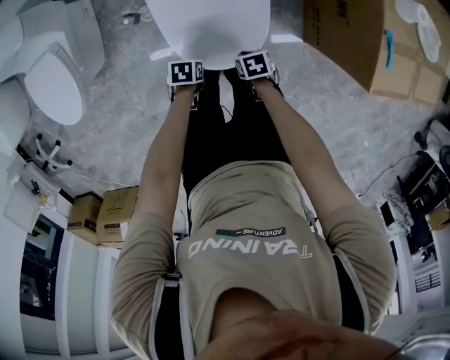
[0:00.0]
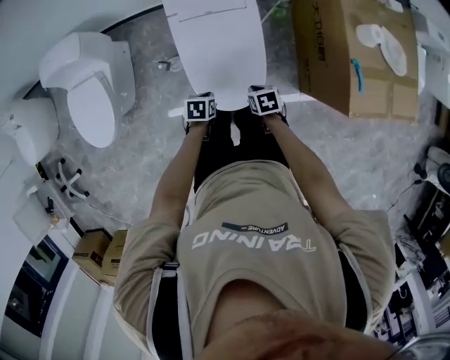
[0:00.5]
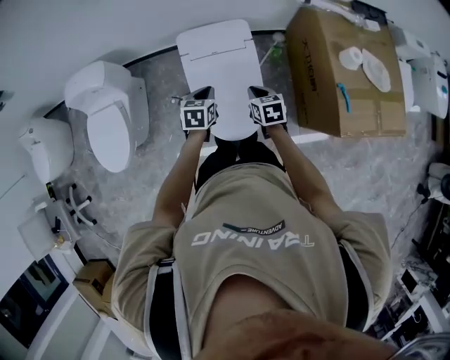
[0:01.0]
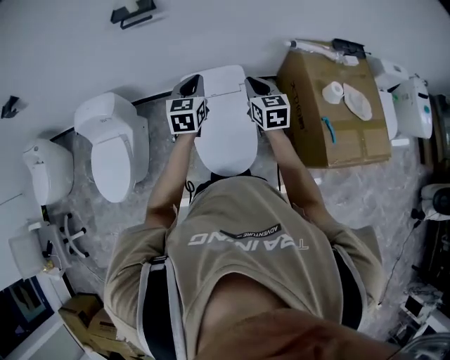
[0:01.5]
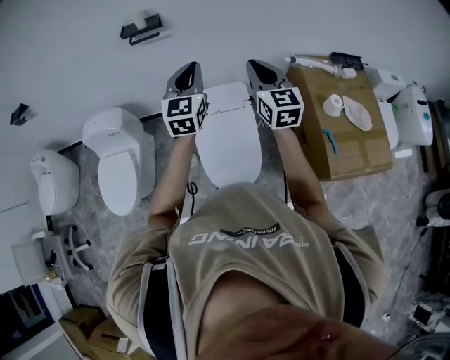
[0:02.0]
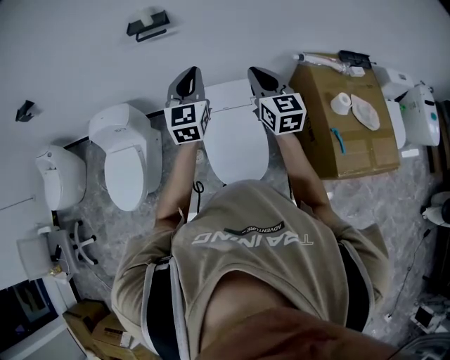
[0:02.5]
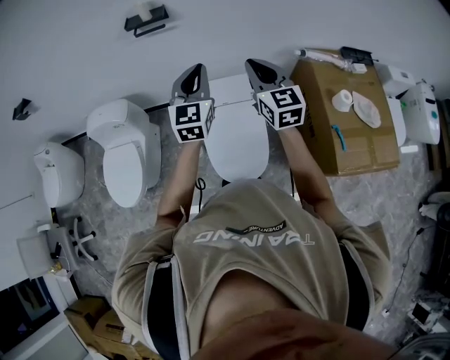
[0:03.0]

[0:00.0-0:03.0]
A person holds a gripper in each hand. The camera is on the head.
0:00.0 to 0:01.5: Both grippers travel together upward, some 50 cm. The left gripper points its fingers approximately 50 degrees further upward; the right gripper points its fingers some 50 degrees further upward.
0:01.5 to 0:03.0: Both grippers travel together upward, about 15 cm.

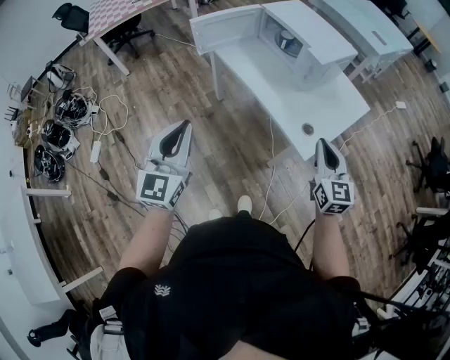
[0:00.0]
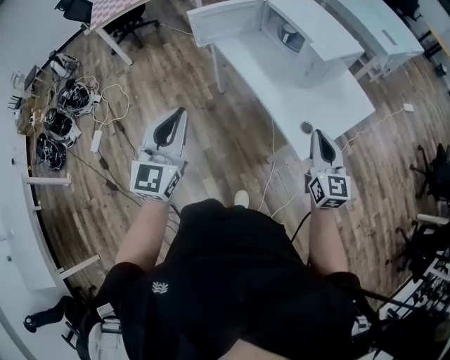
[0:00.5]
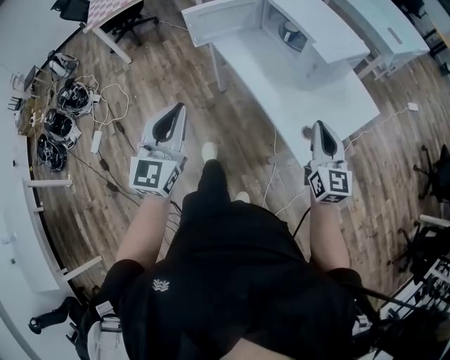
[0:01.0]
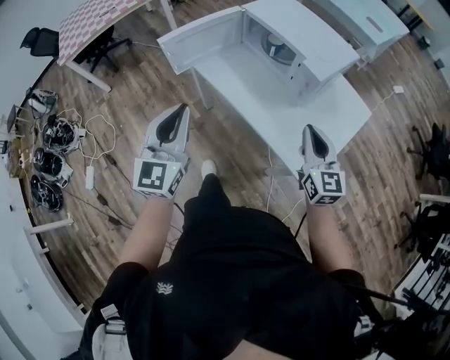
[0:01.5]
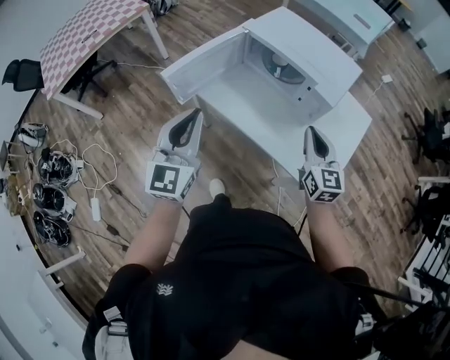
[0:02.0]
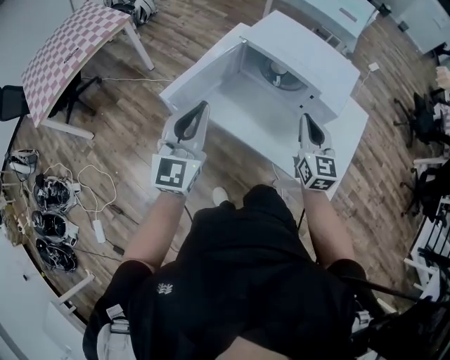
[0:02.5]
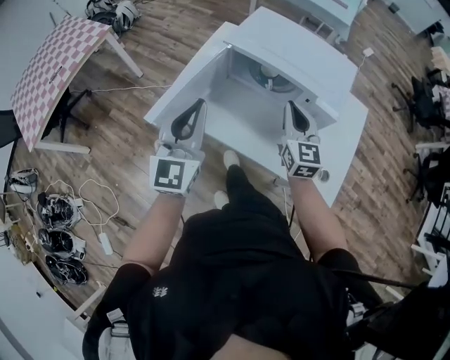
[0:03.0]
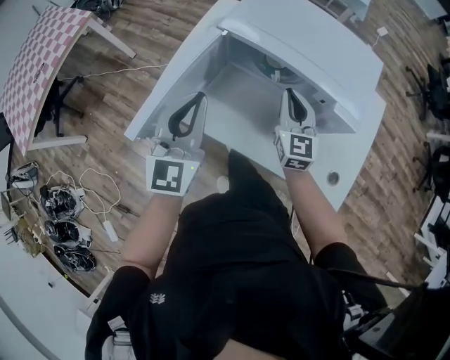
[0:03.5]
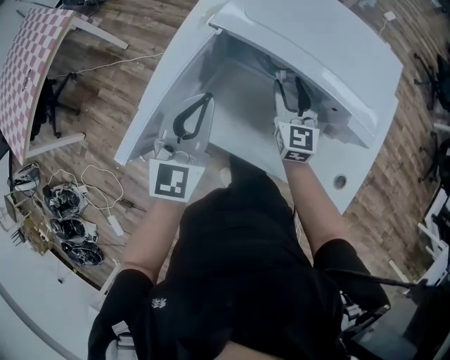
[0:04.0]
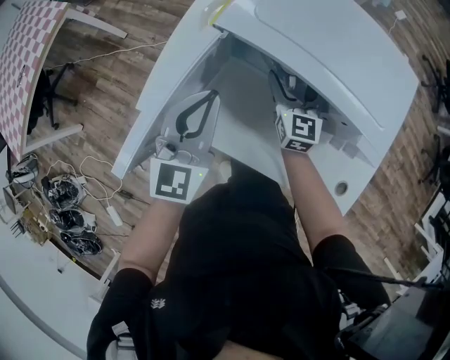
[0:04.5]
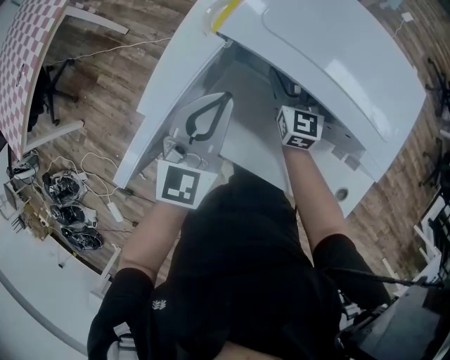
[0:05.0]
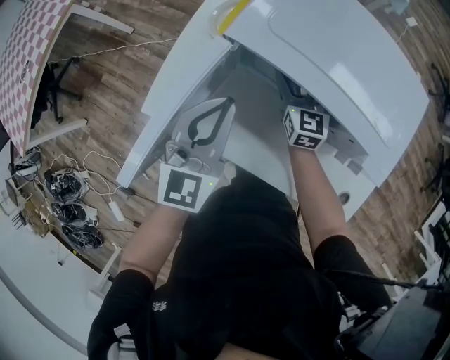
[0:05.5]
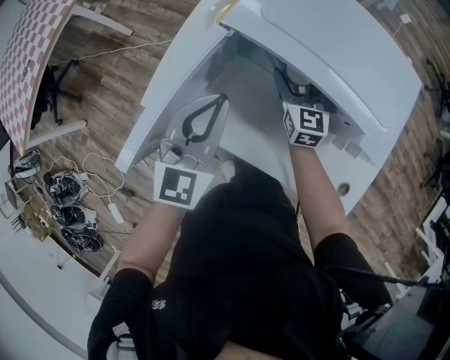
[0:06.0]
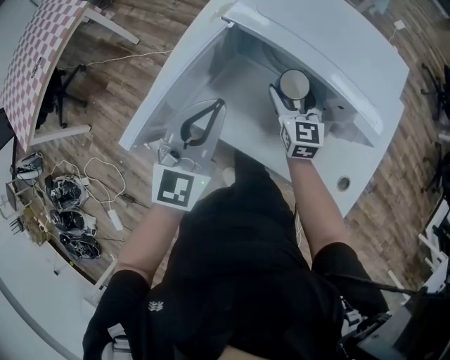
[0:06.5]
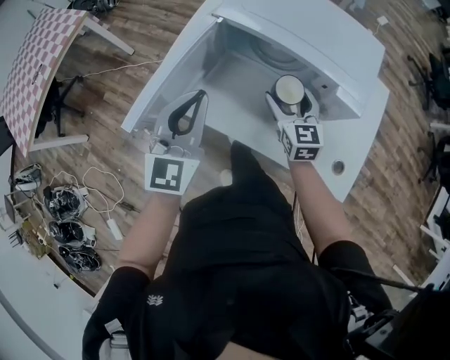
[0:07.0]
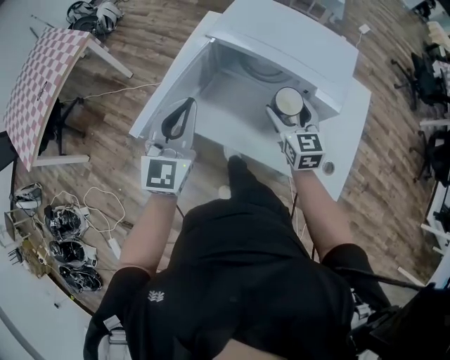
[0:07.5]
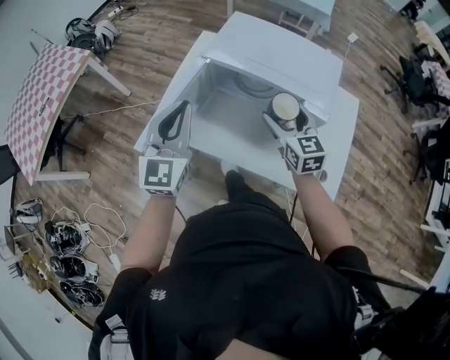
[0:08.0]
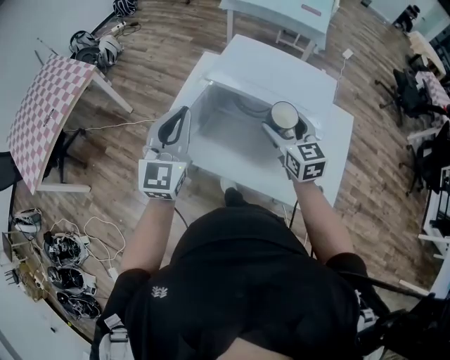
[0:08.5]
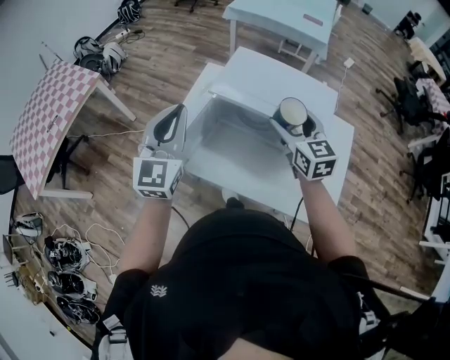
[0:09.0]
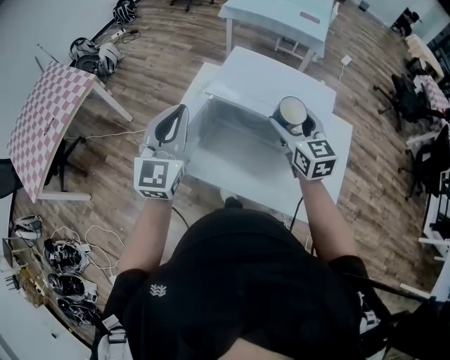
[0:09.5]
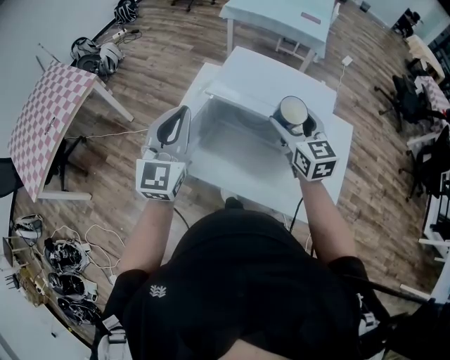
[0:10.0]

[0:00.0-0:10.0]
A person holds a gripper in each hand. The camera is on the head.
0:00.0 to 0:02.0: The grippers both shift forward by approximately 35 cm.
0:02.0 to 0:04.0: Both grippers move forward and downward, about 35 cm. The right gripper opens its fingers.
0:04.0 to 0:06.0: The right gripper heads forward, covering some 5 cm, and opens up.
0:06.0 to 0:08.0: The right gripper moves backward and upward, approximately 25 cm; the left gripper goes some 20 cm upward and backward.
0:08.0 to 0:10.0: Both grippers travel together upward and forward, about 10 cm.

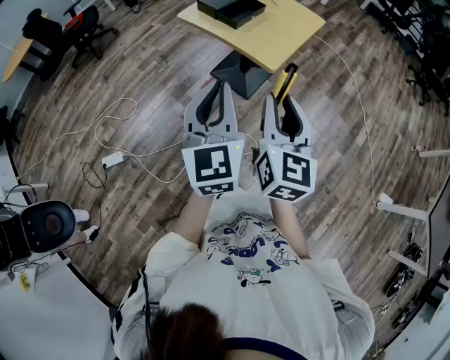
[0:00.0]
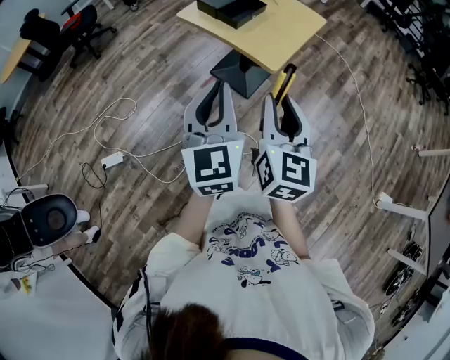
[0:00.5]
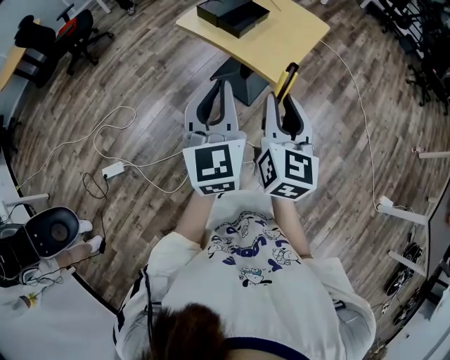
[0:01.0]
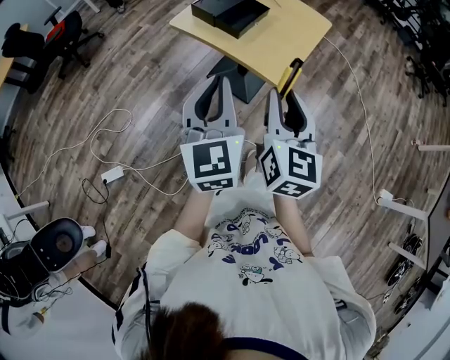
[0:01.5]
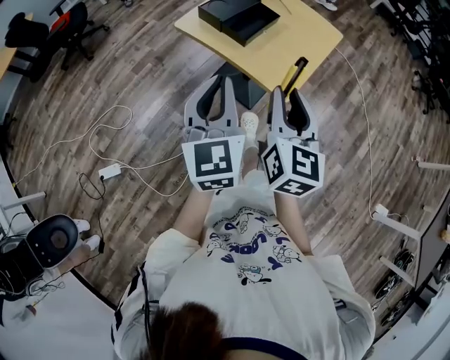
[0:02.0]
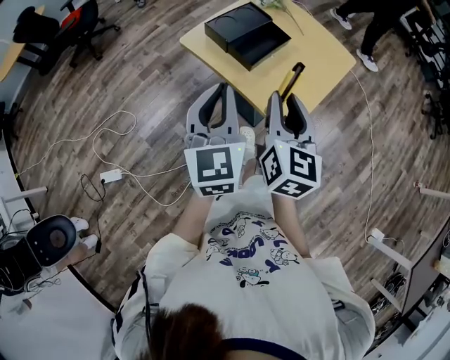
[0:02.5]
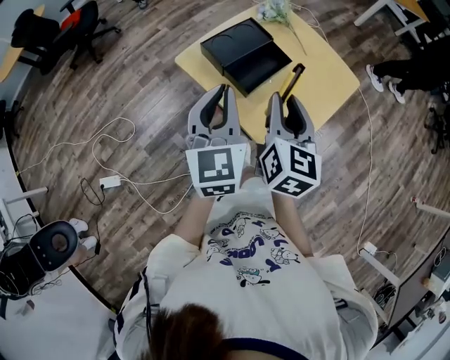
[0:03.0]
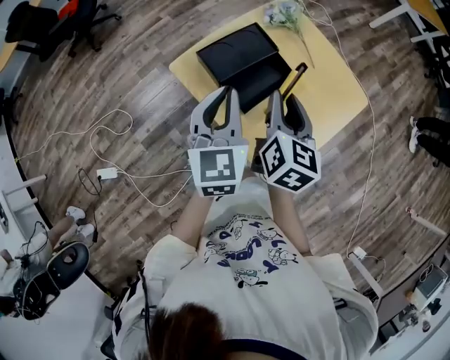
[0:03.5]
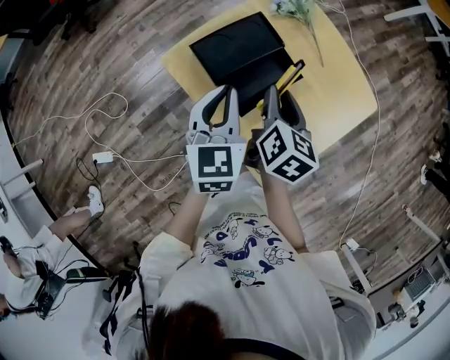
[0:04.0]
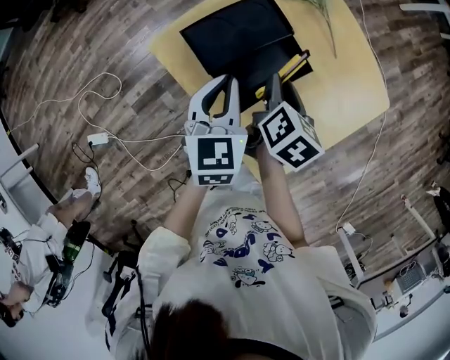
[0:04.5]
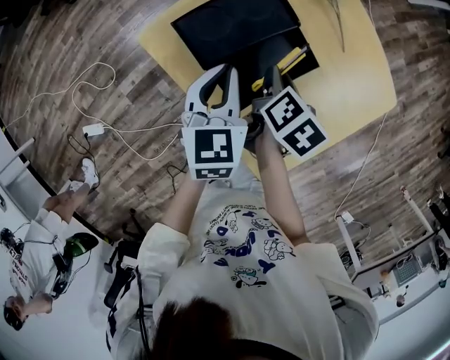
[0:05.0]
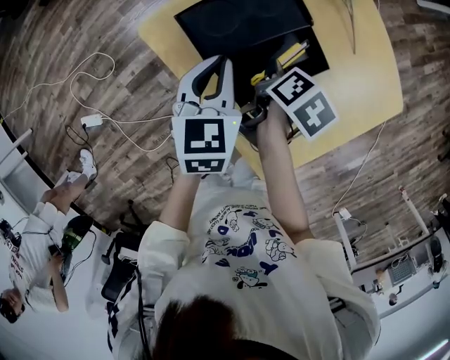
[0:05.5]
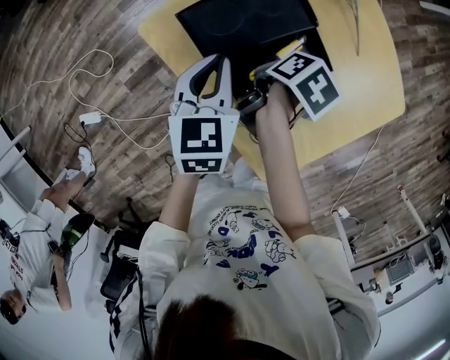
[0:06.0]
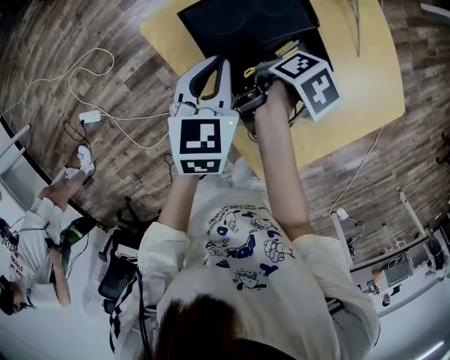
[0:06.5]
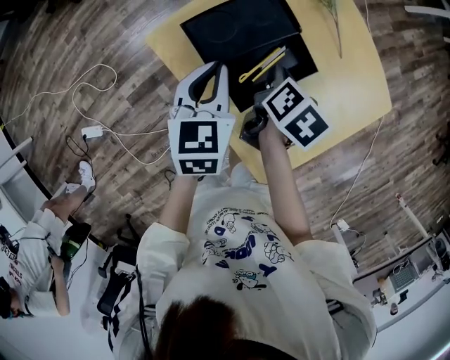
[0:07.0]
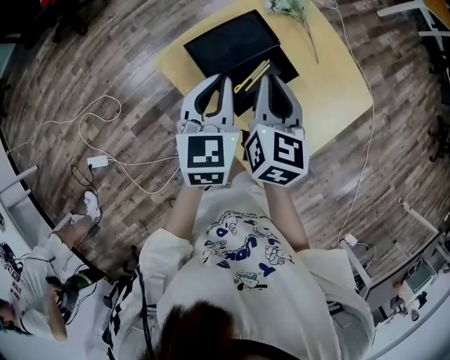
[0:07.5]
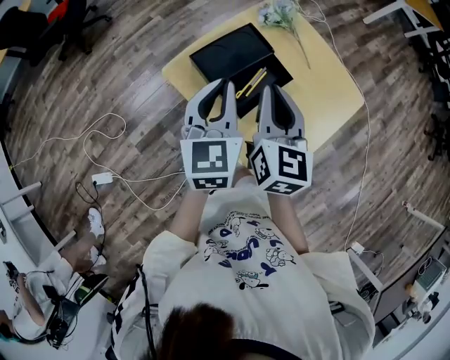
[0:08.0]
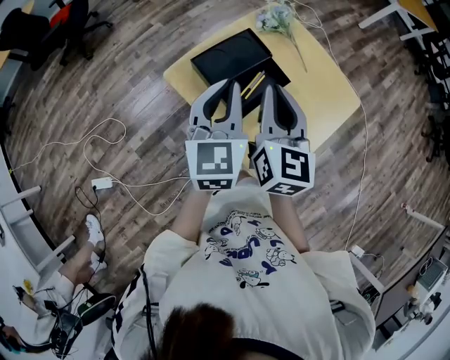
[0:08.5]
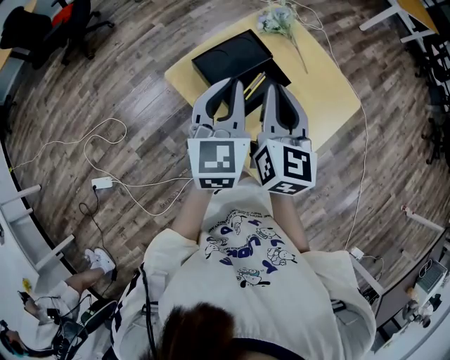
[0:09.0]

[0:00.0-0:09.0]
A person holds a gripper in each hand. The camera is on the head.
0:00.0 to 0:02.0: Both grippers travel together forward, roughly 20 cm.
0:02.0 to 0:04.5: The grippers both shift forward and downward by about 40 cm. The right gripper tilts its fingers about 30 degrees downward. Meanwhile the left gripper turns by approximately 30 degrees.
0:04.5 to 0:07.0: The right gripper goes downward and returns, about 10 cm each way.
0:07.0 to 0:09.0: Both grippers travel together upward, approximately 20 cm. The left gripper turns by roughly 20 degrees. Meanwhile the right gripper tilts its fingers approximately 40 degrees upward.

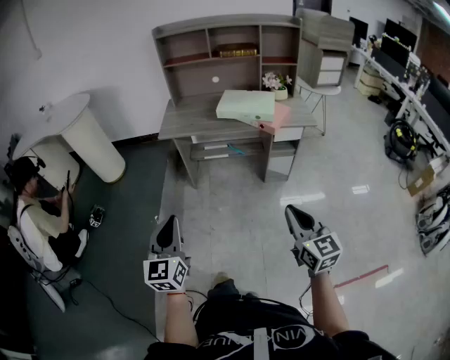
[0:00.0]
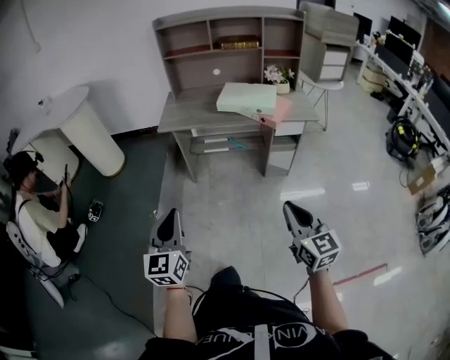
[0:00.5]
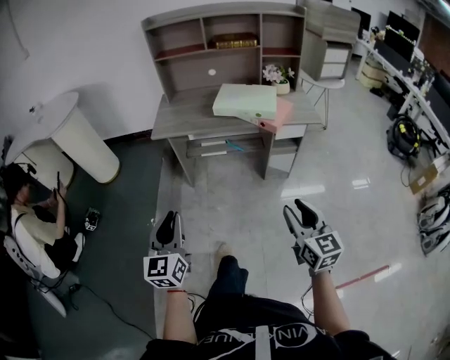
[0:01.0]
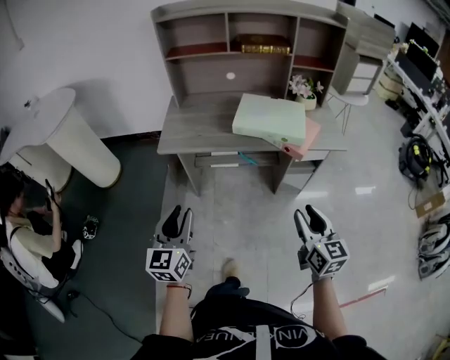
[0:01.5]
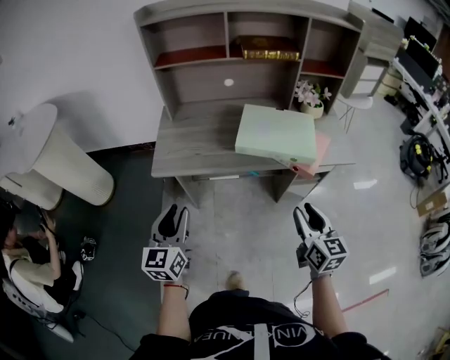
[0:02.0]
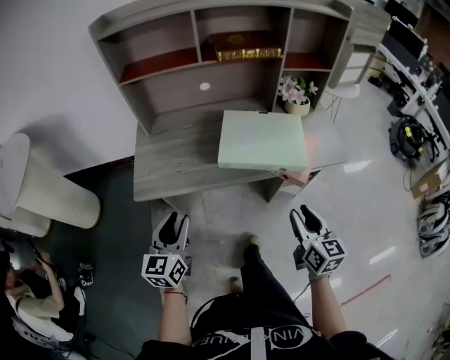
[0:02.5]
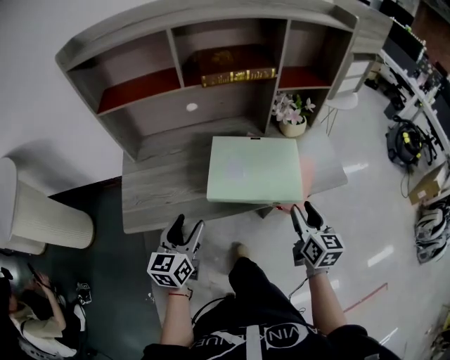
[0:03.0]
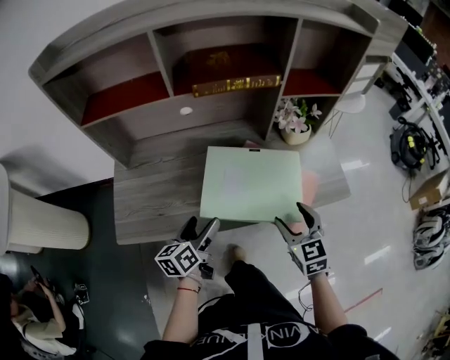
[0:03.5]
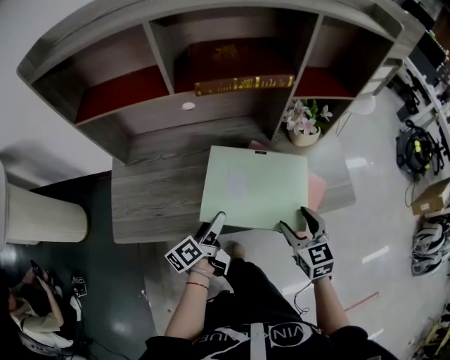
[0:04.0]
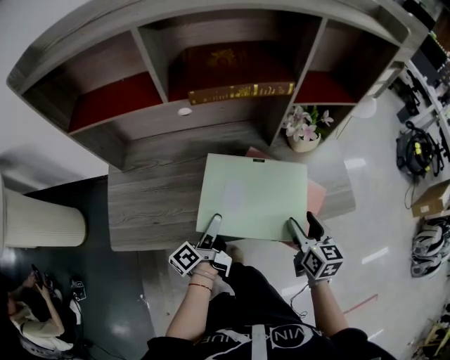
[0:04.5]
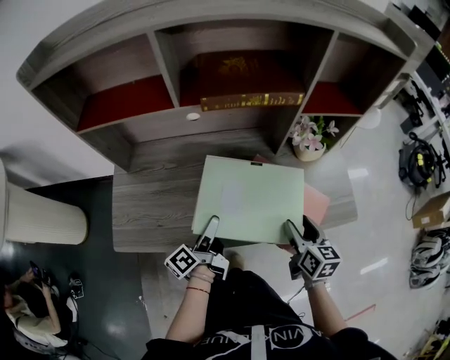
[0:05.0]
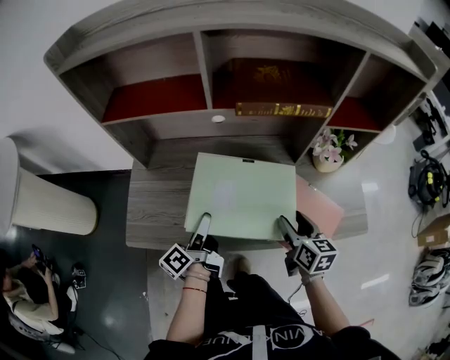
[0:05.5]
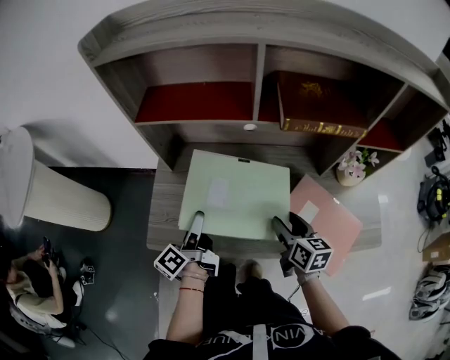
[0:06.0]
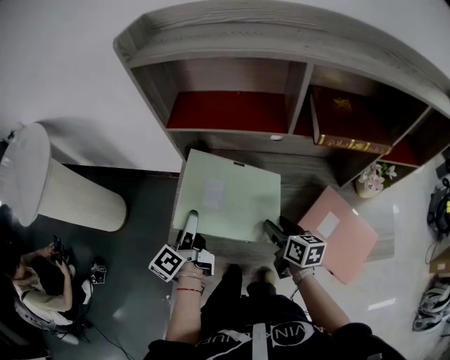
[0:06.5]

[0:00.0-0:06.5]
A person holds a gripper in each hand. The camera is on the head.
0:00.0 to 0:02.0: The grippers both shift forward by approximately 40 cm. The right gripper opens.
0:02.0 to 0:04.5: The left gripper shifts some 40 cm forward, to the right and downward, twists some 80 degrees counterclockwise, seen from behind, and opens up. Meanwhile the right gripper shifts some 30 cm forward.
0:04.5 to 0:06.5: The right gripper moves some 35 cm, and rotates about 30 degrees. Meanwhile the left gripper moves some 35 cm, and rotates approximately 30 degrees.
